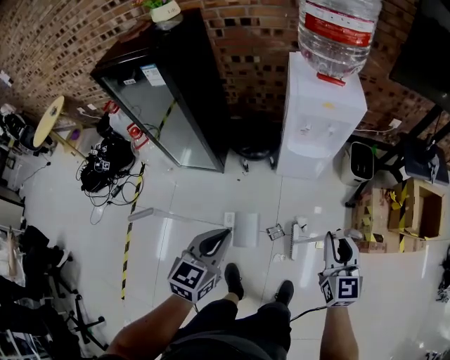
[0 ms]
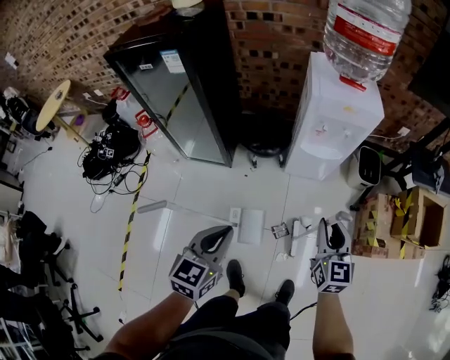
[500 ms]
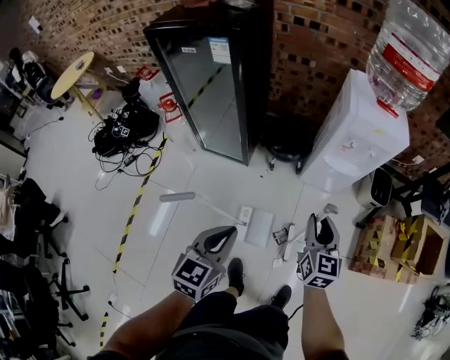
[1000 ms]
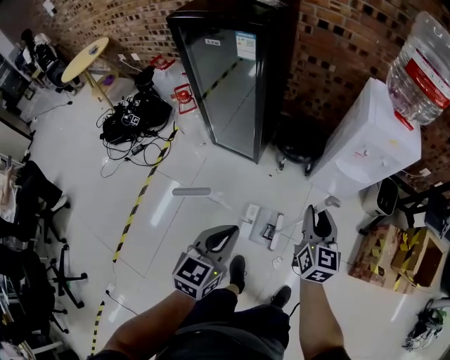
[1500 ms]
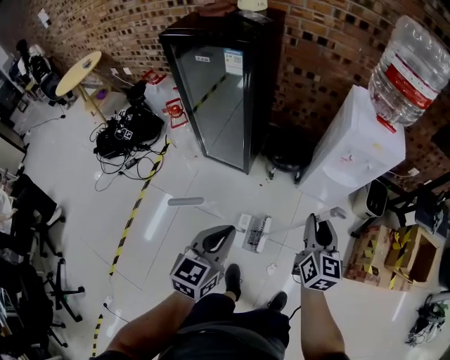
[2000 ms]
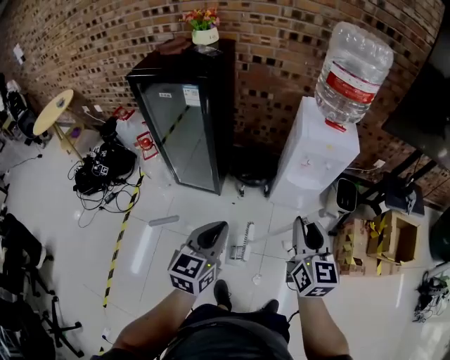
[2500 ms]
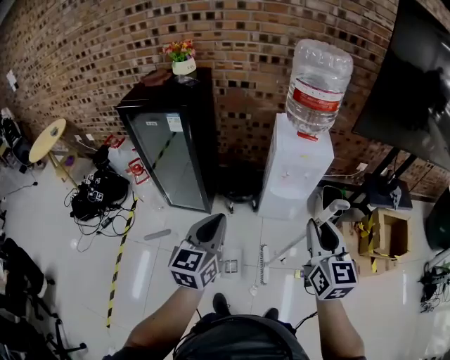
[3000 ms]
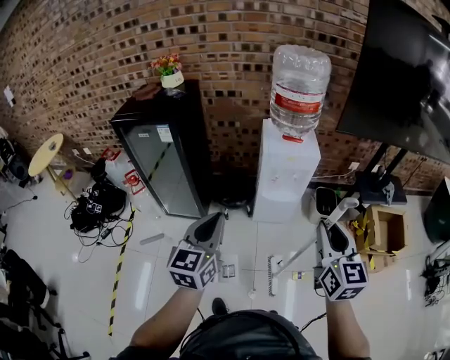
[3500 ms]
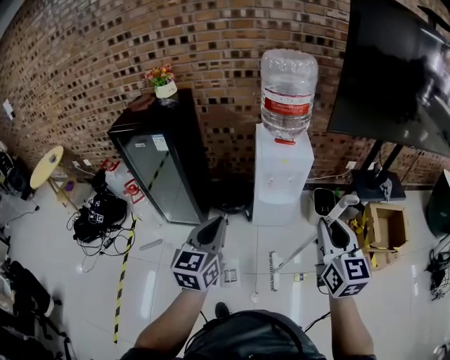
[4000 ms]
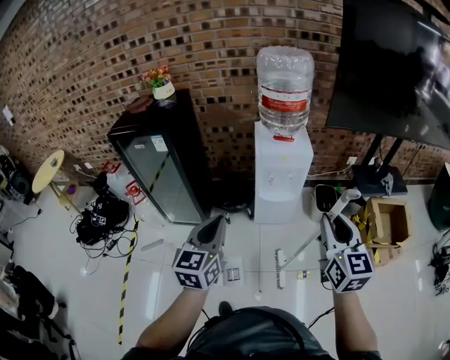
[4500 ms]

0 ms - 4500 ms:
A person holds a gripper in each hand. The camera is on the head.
0 ms - 2000 ms: Both grippers travel together to the left, about 20 cm.
2000 ms - 4500 ms: The left gripper heads upward and to the right, covering about 30 cm, while the right gripper heads to the right and upward, covering roughly 40 cm.

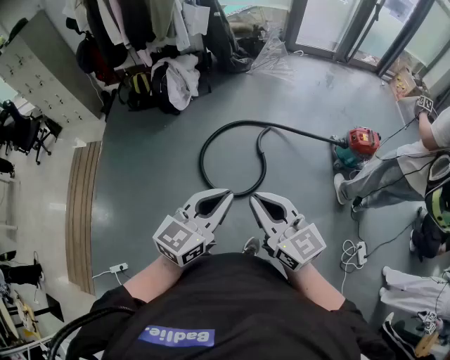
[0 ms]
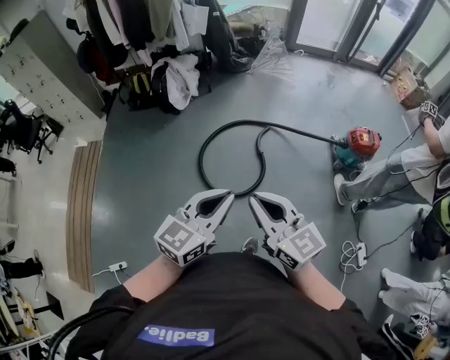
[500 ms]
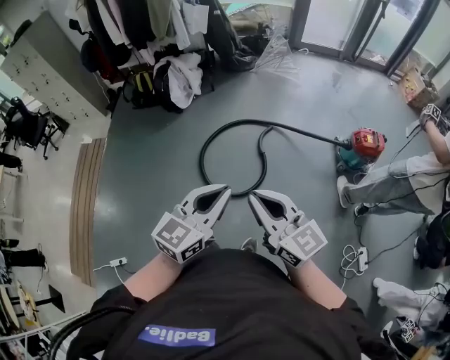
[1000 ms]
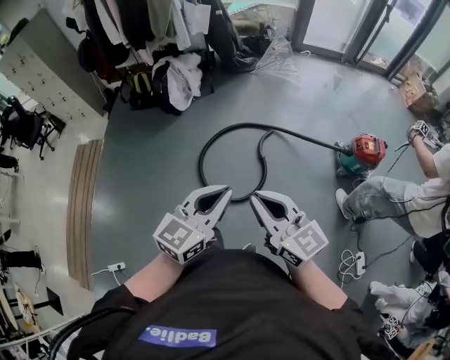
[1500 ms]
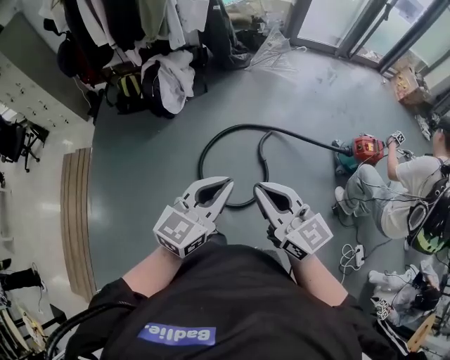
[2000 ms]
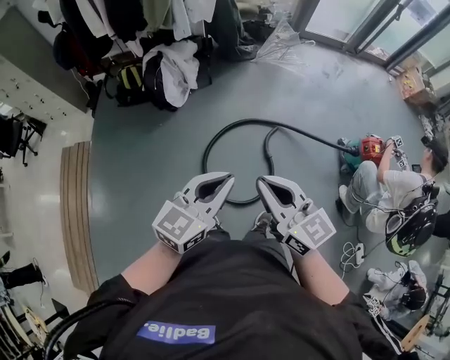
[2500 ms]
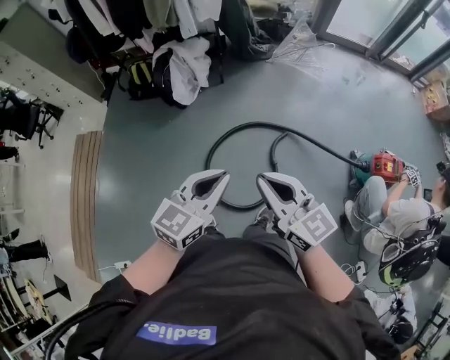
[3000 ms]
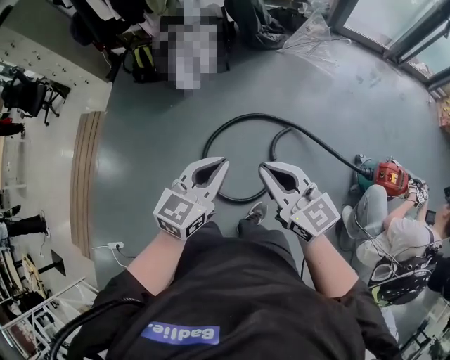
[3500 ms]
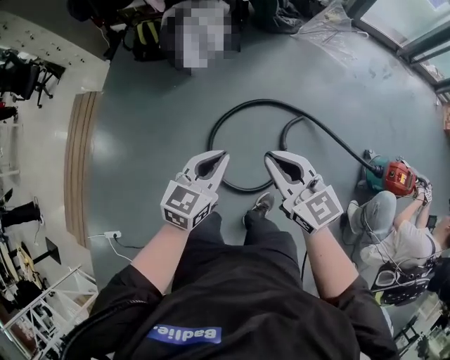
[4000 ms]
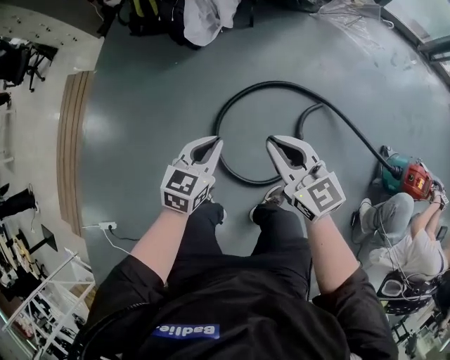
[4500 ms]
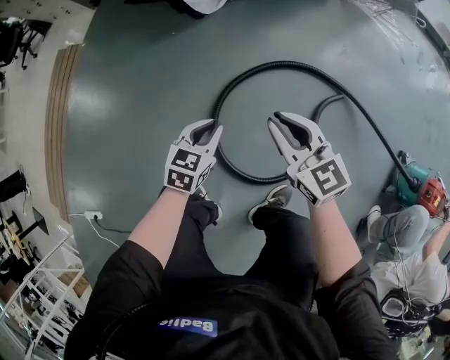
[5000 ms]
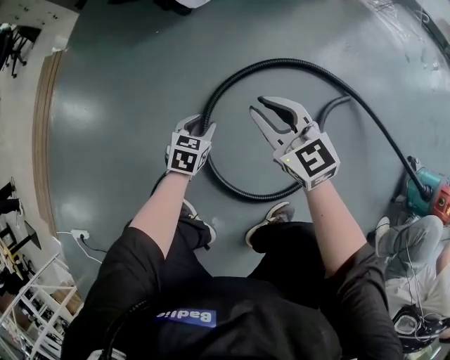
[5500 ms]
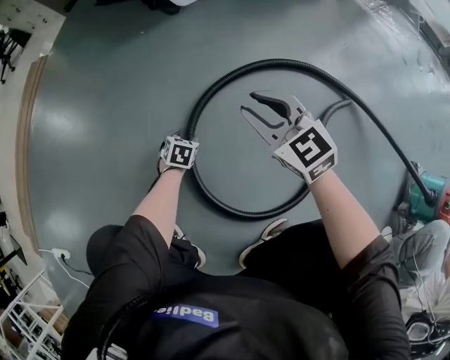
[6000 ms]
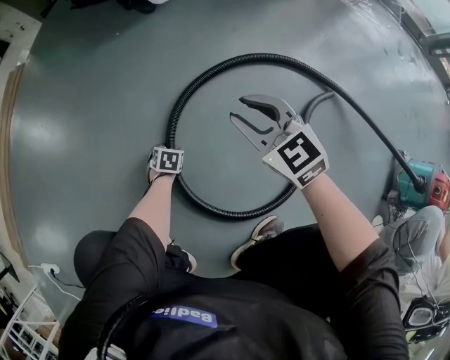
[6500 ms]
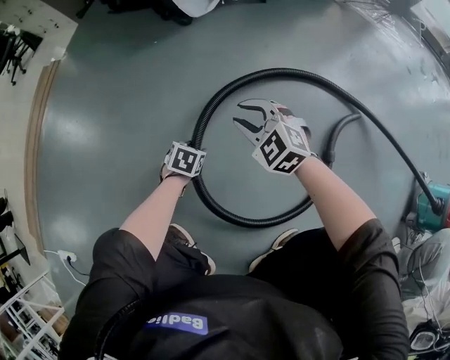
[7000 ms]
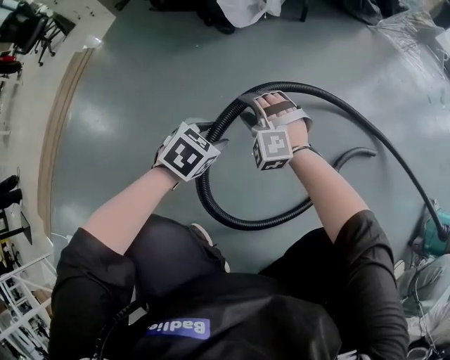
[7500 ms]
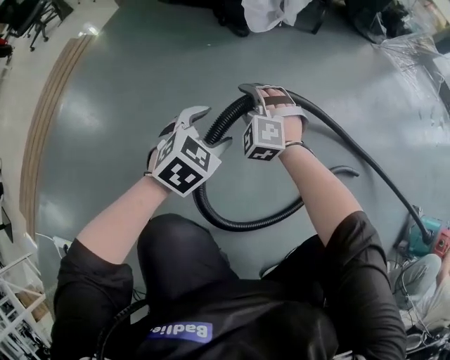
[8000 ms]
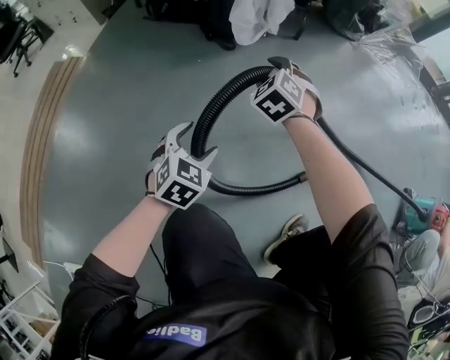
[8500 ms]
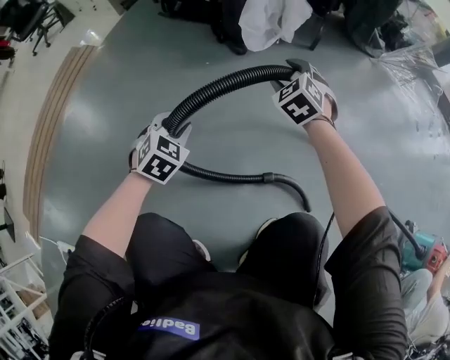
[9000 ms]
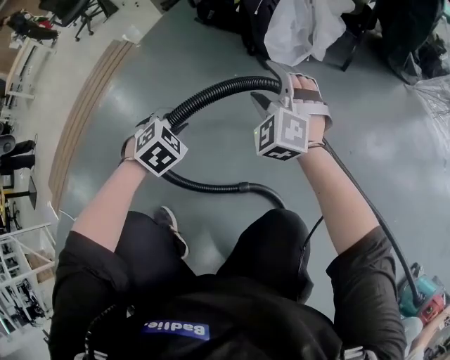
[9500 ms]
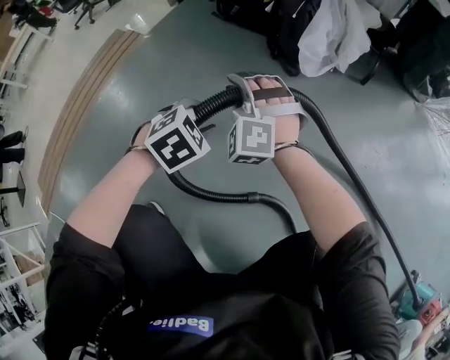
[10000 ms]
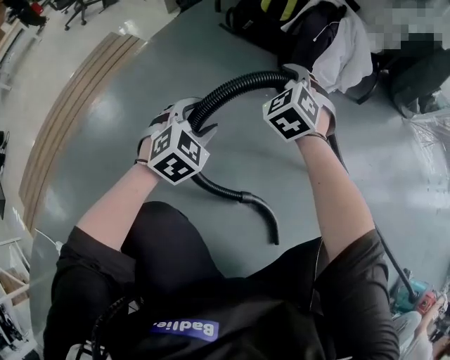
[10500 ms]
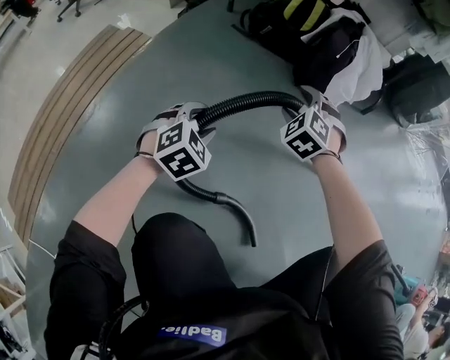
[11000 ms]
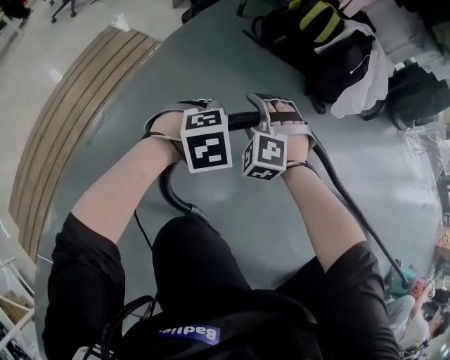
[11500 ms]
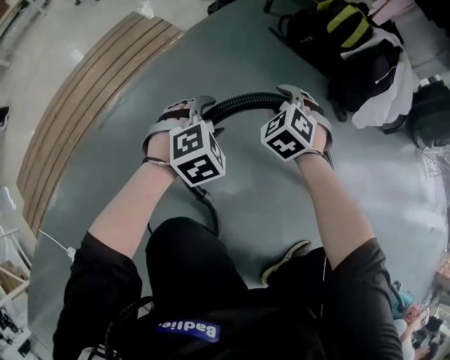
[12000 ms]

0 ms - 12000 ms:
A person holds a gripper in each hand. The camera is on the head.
0 ms - 2000 ms: The two grippers go some 20 cm forward.
2000 ms - 4000 ms: The right gripper goes roughly 25 cm forward and downward; the left gripper travels downward and forward by approximately 25 cm, and rotates approximately 30 degrees.
4000 ms - 6000 ms: The grippers both shift downward by roughly 70 cm. The left gripper tips its fingers downward by about 40 degrees, and opens its fingers. Meanwhile the right gripper swivels approximately 20 degrees.
6000 ms - 8000 ms: The left gripper moves upward, some 30 cm, and rotates roughly 30 degrees, while the right gripper is displaced to the left by about 25 cm, and rolls counterclockwise, seen from behind, by some 50 degrees.
8000 ms - 10000 ms: The right gripper changes place by approximately 25 cm, and opens and closes again, while the left gripper moves roughly 20 cm, and closes up.
10000 ms - 12000 ms: The two grippers go some 30 cm to the left. The left gripper opens. Meanwhile the right gripper changes its angle by roughly 30 degrees, and opens and closes again.

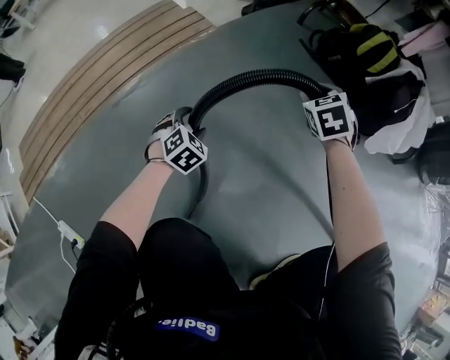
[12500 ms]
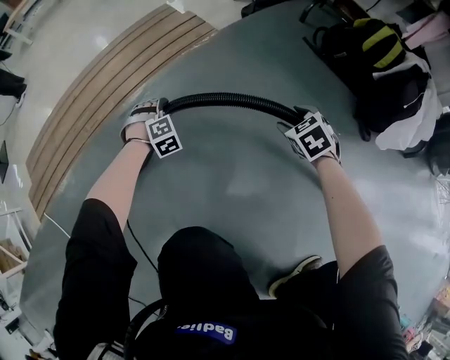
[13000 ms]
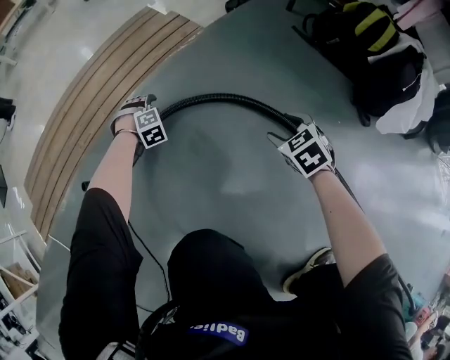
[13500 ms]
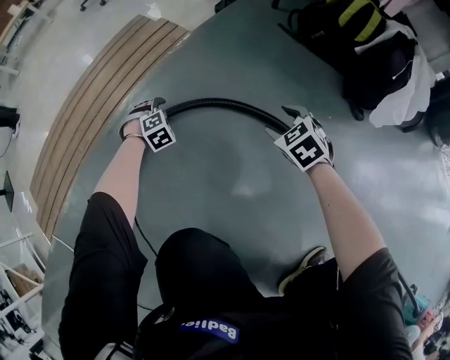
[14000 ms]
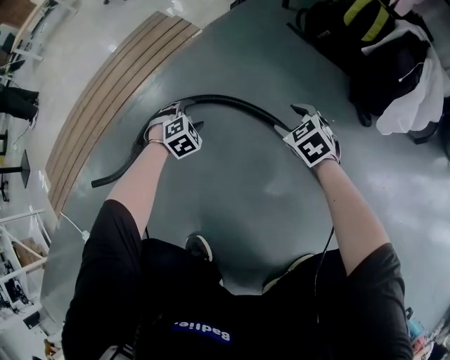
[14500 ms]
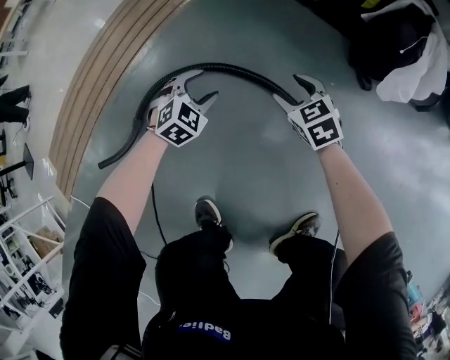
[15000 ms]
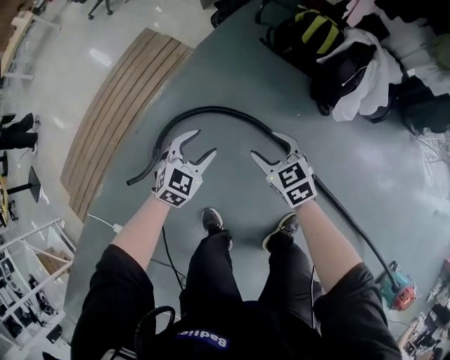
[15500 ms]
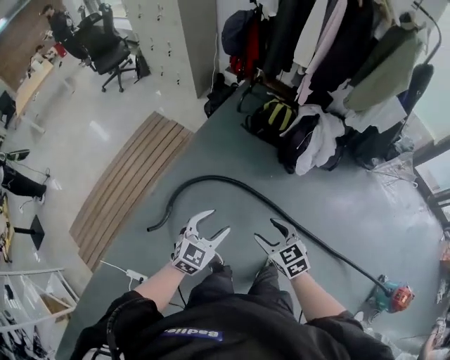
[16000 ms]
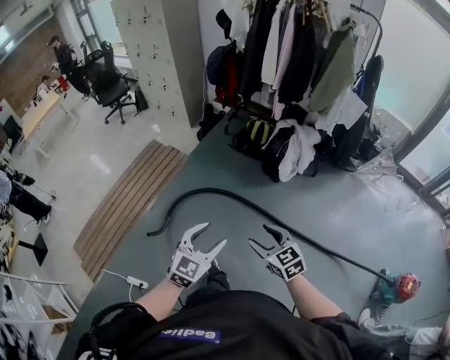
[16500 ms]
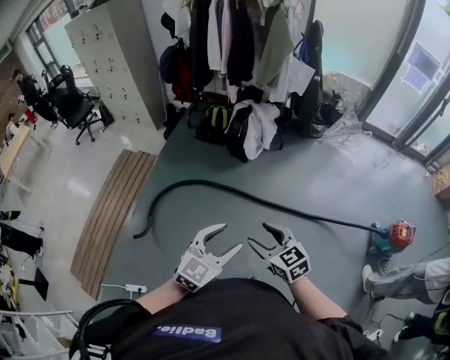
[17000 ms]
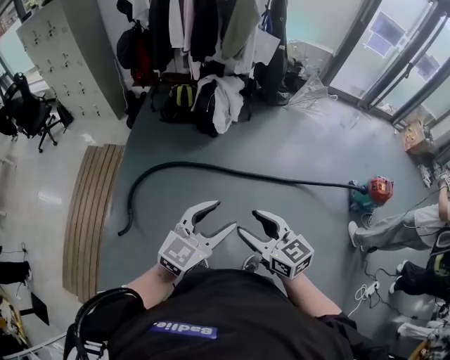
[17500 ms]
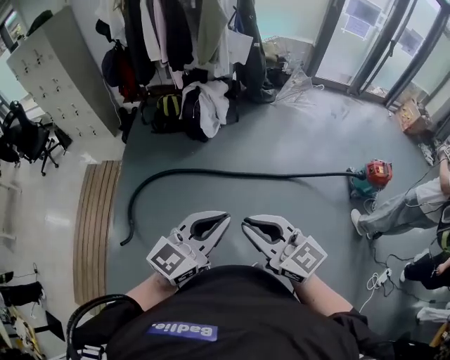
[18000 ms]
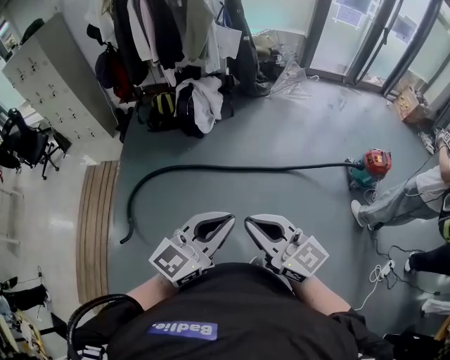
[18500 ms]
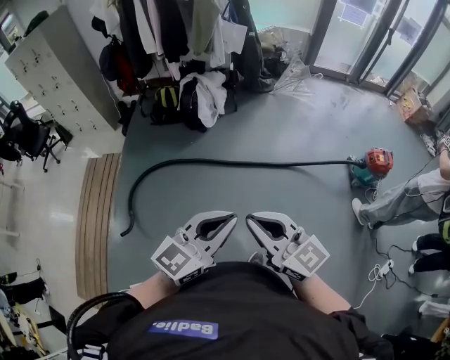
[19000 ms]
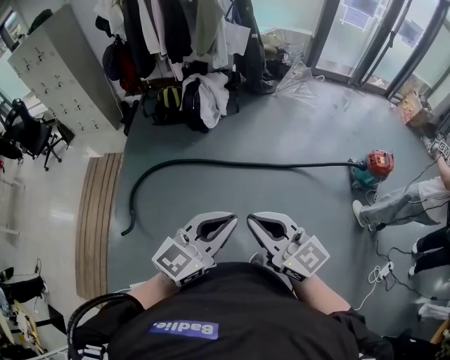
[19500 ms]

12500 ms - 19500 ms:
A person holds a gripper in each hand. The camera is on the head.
12500 ms - 14500 ms: The left gripper swivels roughly 20 degrees. The right gripper goes roughly 10 cm downward, and turns by about 20 degrees.
14500 ms - 16000 ms: The left gripper is displaced upward by some 70 cm, and points its fingers about 40 degrees further upward. Meanwhile the right gripper moves upward and backward, about 70 cm, and turns by roughly 20 degrees.
16000 ms - 17500 ms: The left gripper ends up about 40 cm from where it was, and rotates roughly 40 degrees, while the right gripper ends up some 40 cm from where it was, and rotates some 40 degrees.
17500 ms - 19500 ms: The left gripper moves to the right, backward and upward, approximately 15 cm, and closes, while the right gripper travels to the right, upward and backward by roughly 15 cm, and closes up.

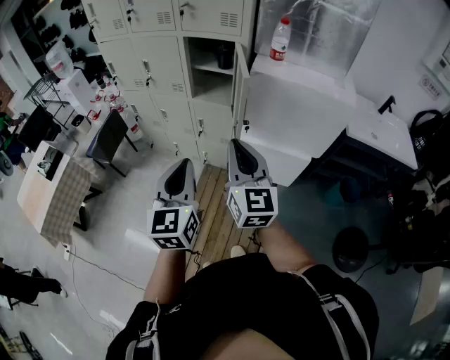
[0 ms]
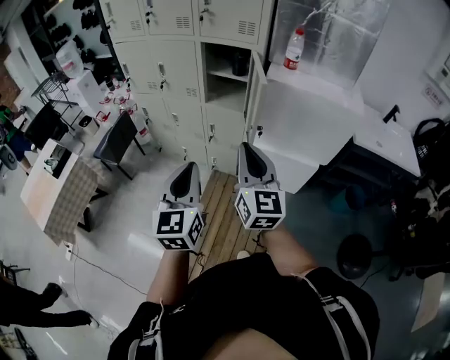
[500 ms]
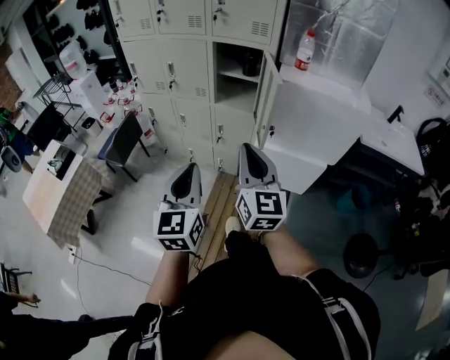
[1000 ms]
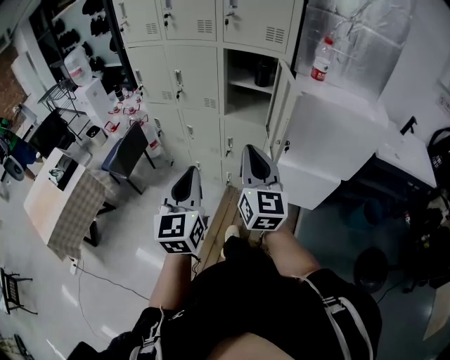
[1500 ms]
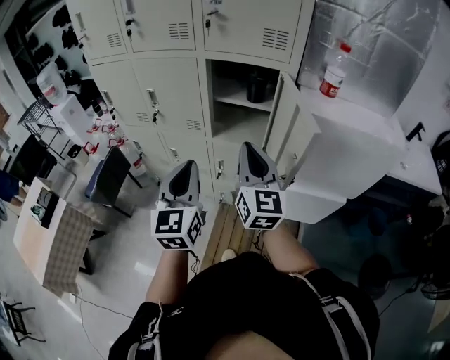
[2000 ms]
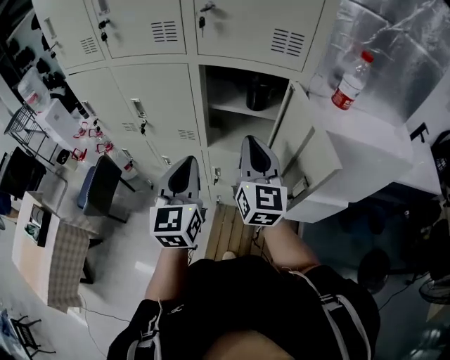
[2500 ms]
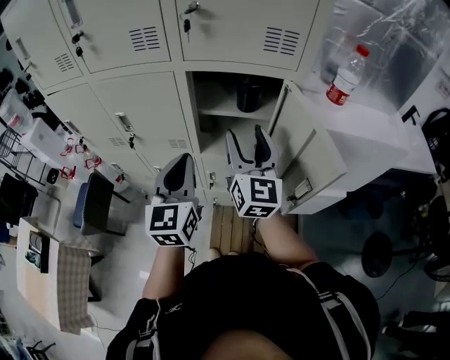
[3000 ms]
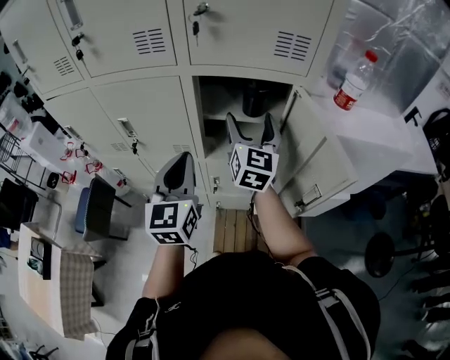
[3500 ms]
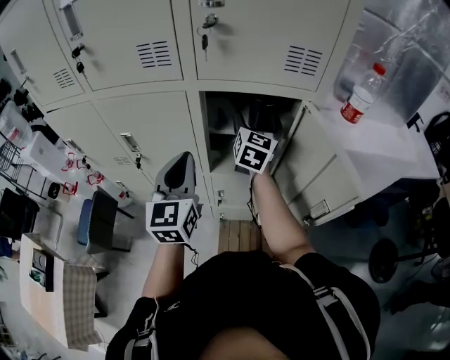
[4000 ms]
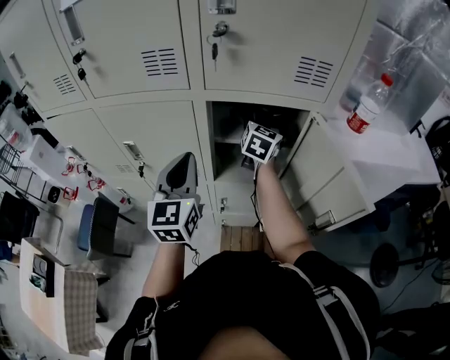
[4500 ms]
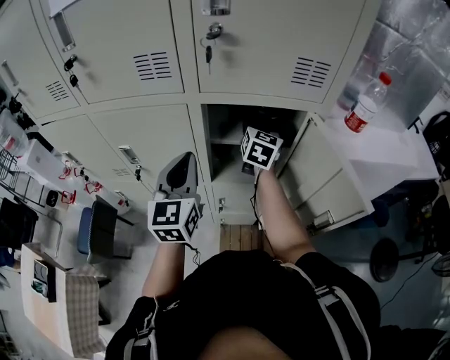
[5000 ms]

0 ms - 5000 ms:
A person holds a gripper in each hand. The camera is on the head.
0 ms - 2500 ms: Both grippers are carried forward, about 40 cm.
2500 ms - 5000 ms: The right gripper travels forward by about 30 cm, swivels approximately 30 degrees, and opens up, while the left gripper goes some 20 cm forward and to the left.
